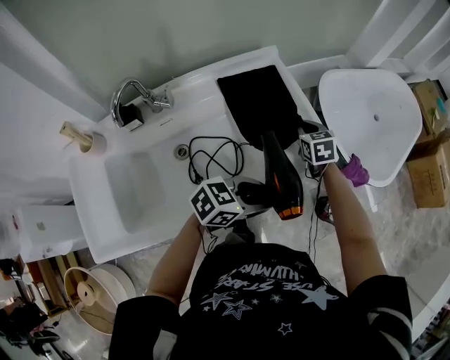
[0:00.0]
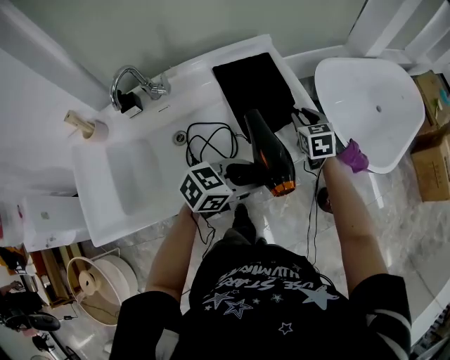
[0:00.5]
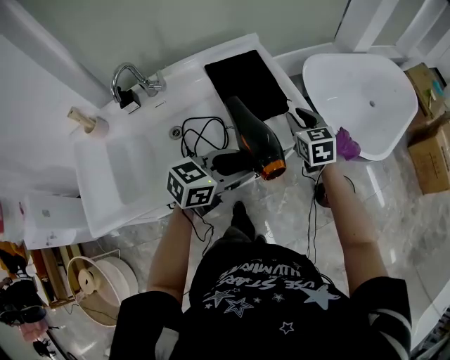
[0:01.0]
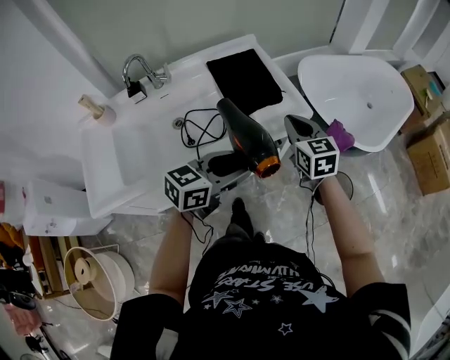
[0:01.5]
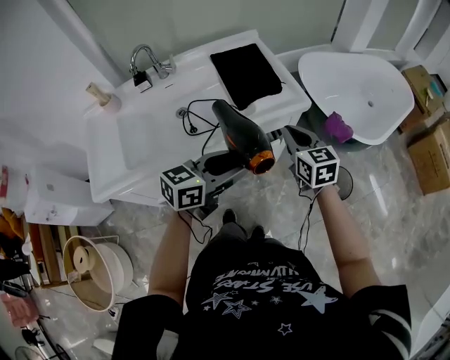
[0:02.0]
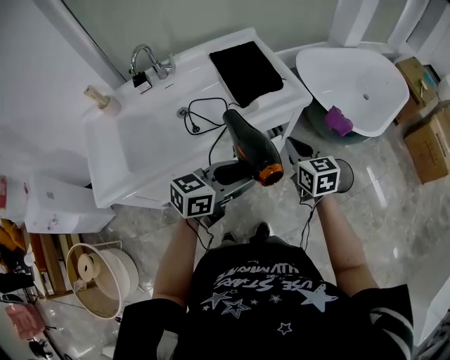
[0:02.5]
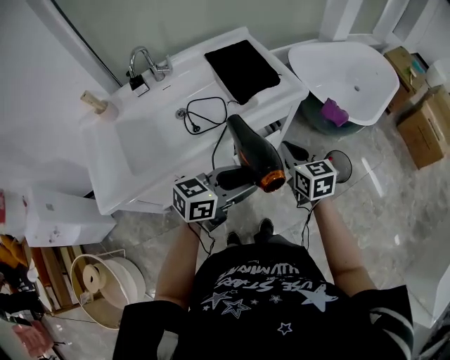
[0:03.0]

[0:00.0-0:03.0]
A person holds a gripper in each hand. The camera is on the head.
0:00.0 to 0:01.5: The right gripper goes some 25 cm backward, upward and to the right, changes its angle by some 20 degrees, and opens, then closes once more. The left gripper goes about 15 cm backward, upward and to the right, and rotates about 20 degrees.
0:01.5 to 0:03.0: Both grippers move backward, some 15 cm.

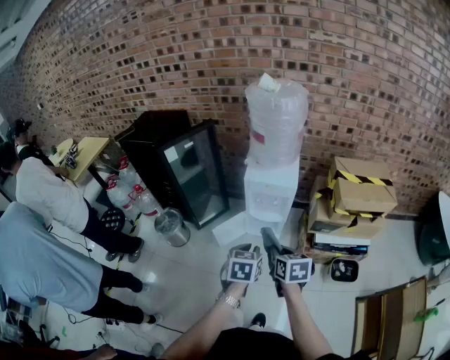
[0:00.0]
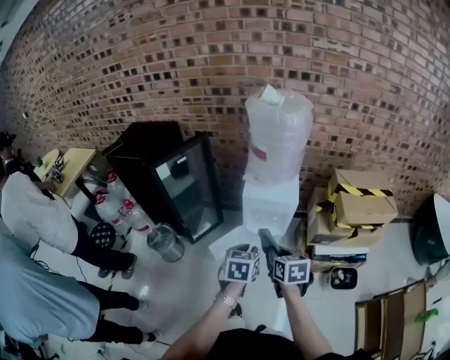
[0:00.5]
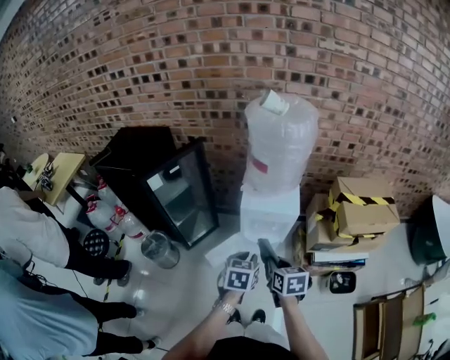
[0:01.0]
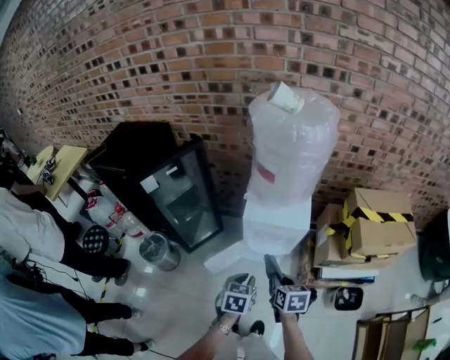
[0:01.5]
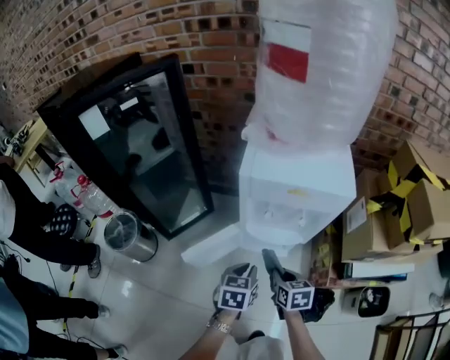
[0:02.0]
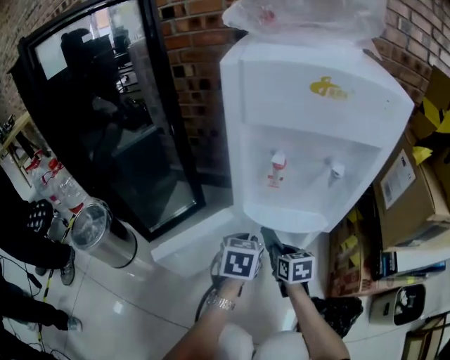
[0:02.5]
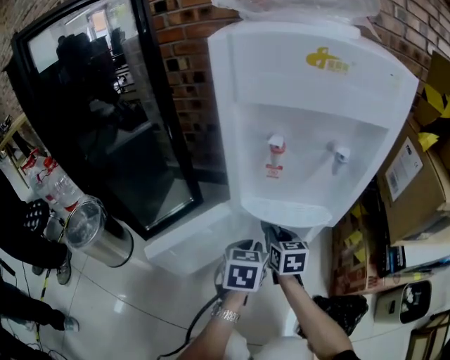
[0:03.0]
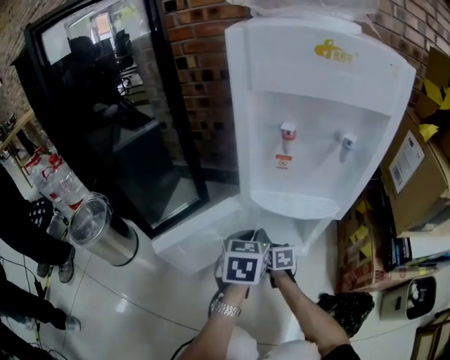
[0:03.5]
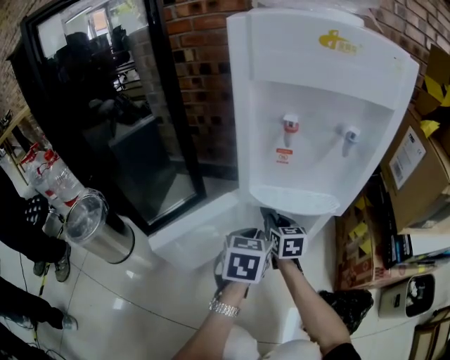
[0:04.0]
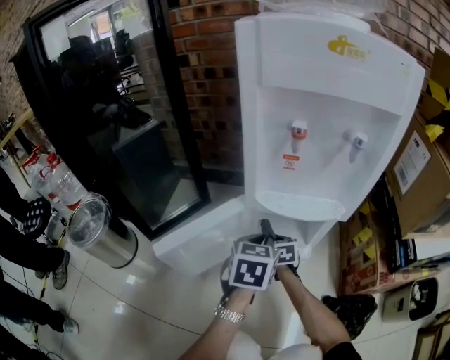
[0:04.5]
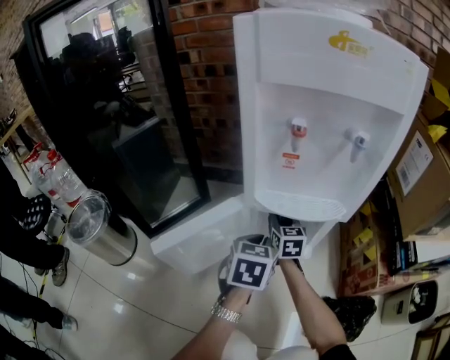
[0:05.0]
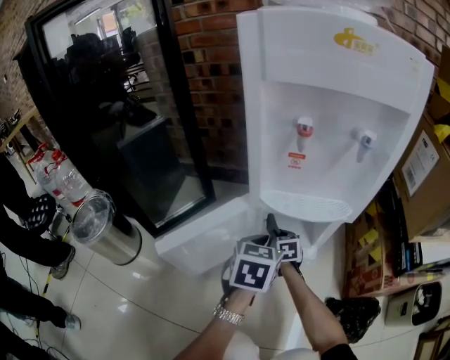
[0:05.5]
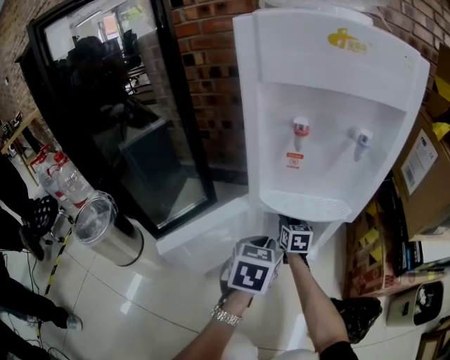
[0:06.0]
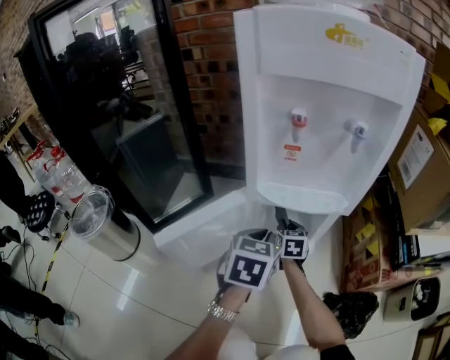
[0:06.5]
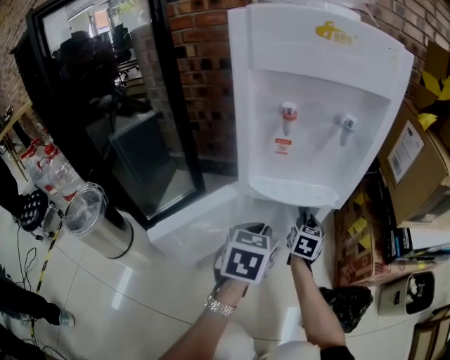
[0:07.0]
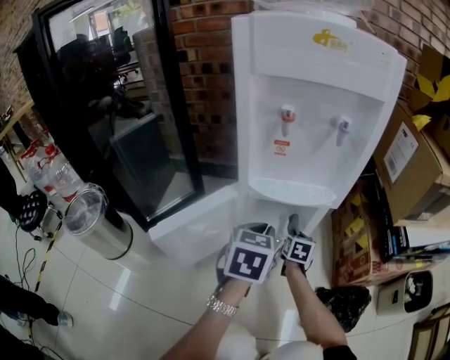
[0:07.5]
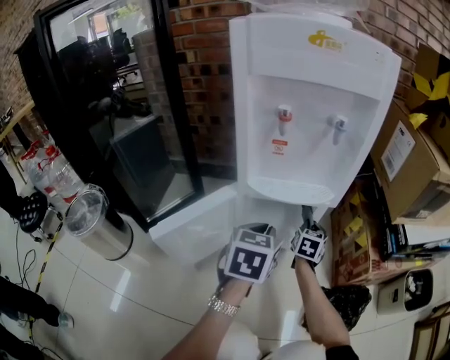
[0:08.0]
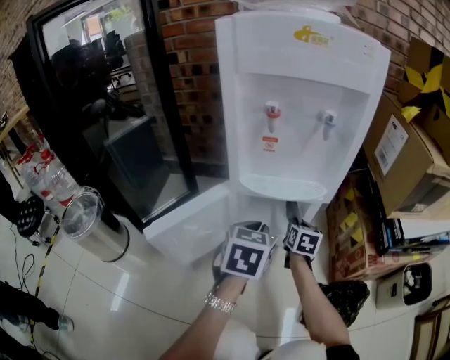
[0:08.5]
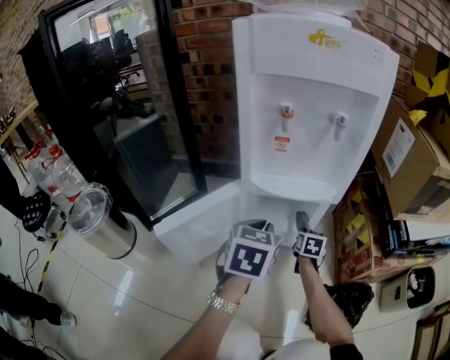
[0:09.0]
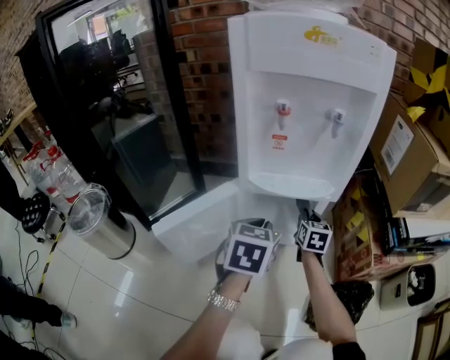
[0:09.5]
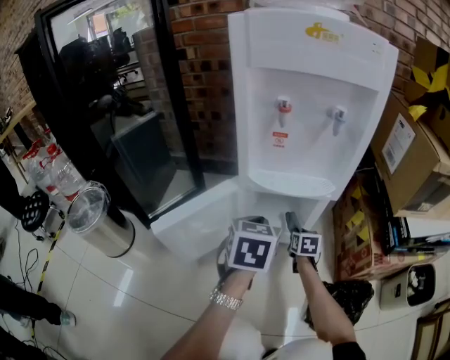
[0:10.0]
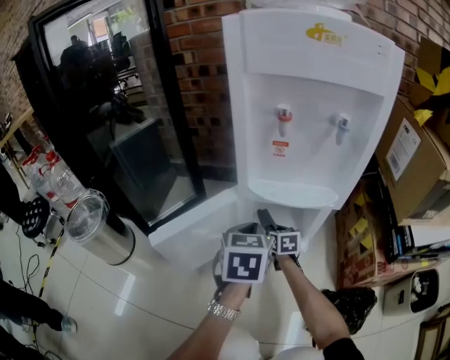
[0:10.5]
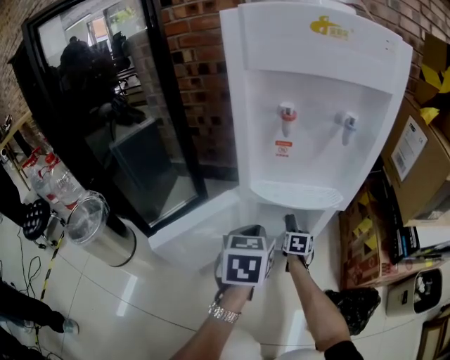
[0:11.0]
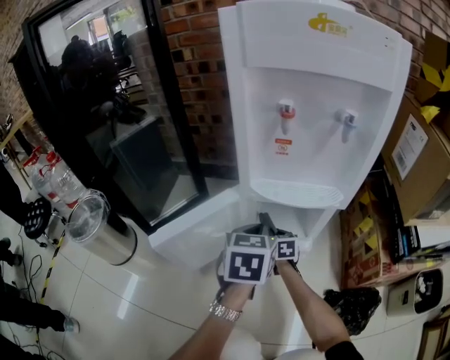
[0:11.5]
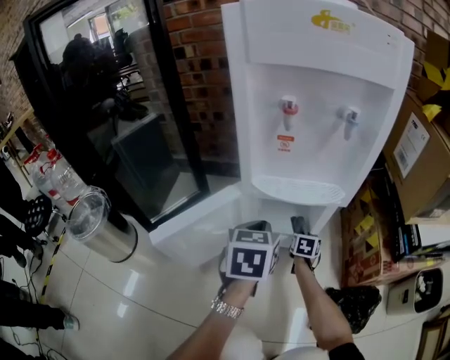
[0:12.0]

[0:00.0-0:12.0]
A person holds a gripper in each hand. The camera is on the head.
0:00.0 to 0:02.0: Both grippers travel together downward and forward, roughly 50 cm.
0:02.0 to 0:04.0: The right gripper heads downward and forward, covering some 30 cm, and rotates about 20 degrees, while the left gripper goes approximately 20 cm downward and forward.
0:04.0 to 0:06.0: The right gripper moves up and down over about 10 cm, changing direction 2 times.
0:06.0 to 0:08.0: The right gripper shifts approximately 15 cm to the right, and rotates some 20 degrees. Meanwhile the left gripper shifts by some 5 cm.
0:08.0 to 0:10.0: The right gripper moves up and down over some 10 cm, changing direction 2 times, and swivels approximately 20 degrees.
0:10.0 to 0:12.0: The right gripper swings left and right, roughly 15 cm each way, with 3 reversals.

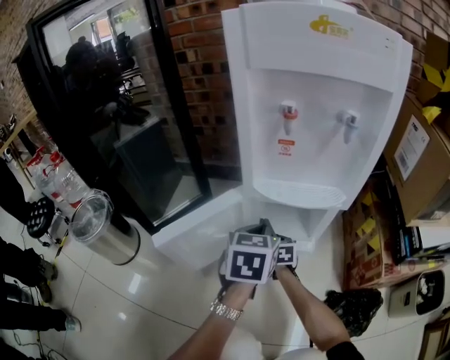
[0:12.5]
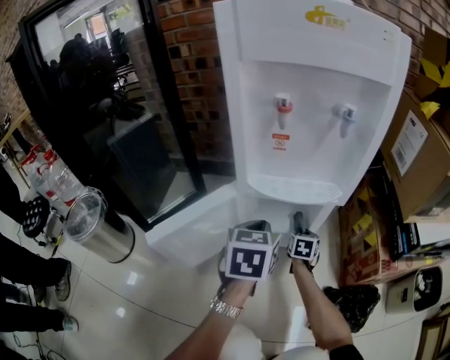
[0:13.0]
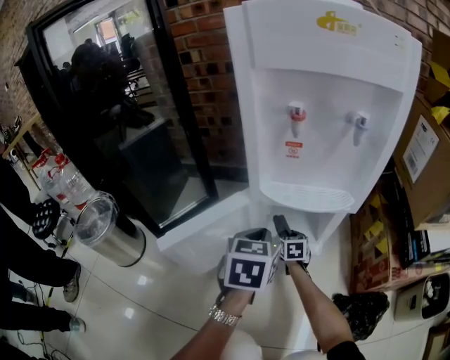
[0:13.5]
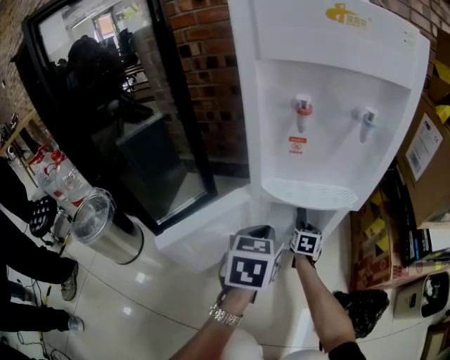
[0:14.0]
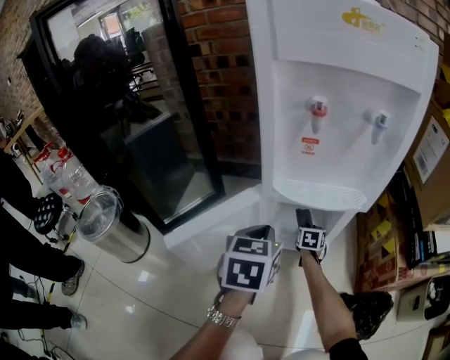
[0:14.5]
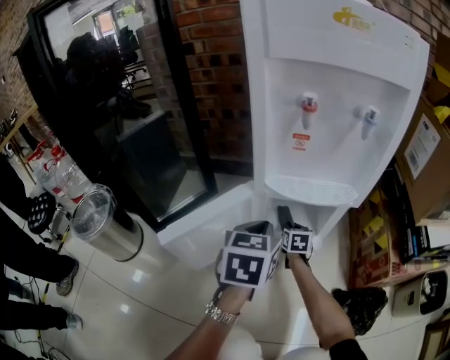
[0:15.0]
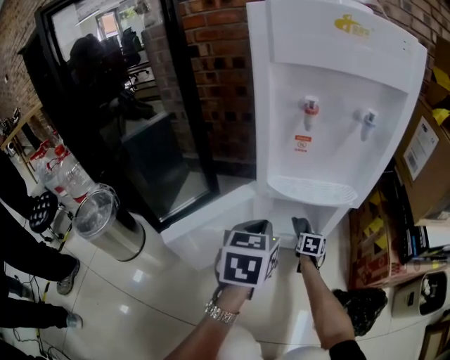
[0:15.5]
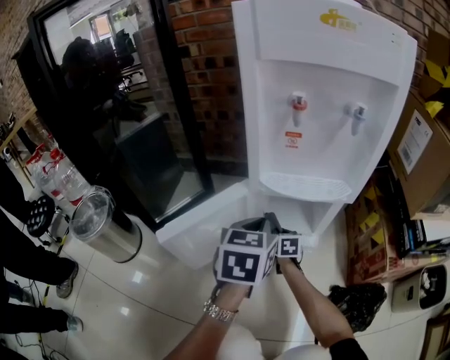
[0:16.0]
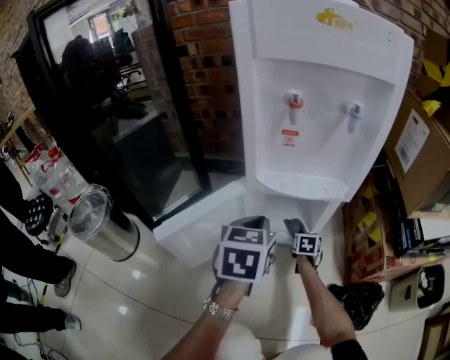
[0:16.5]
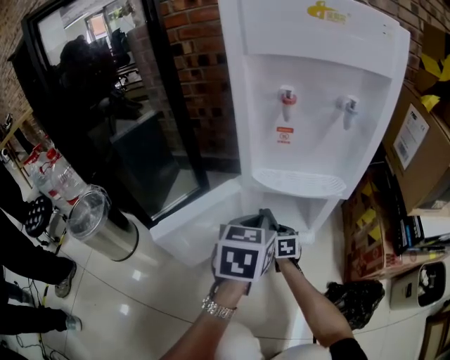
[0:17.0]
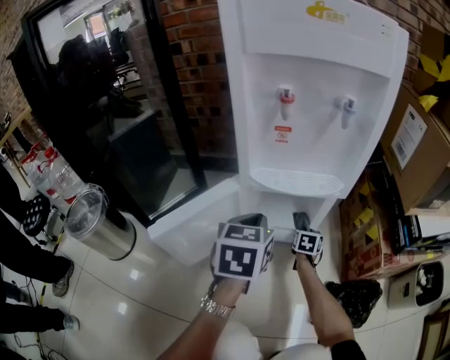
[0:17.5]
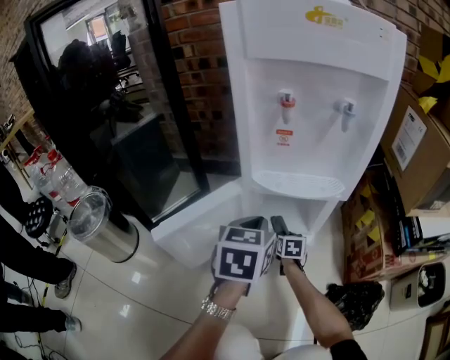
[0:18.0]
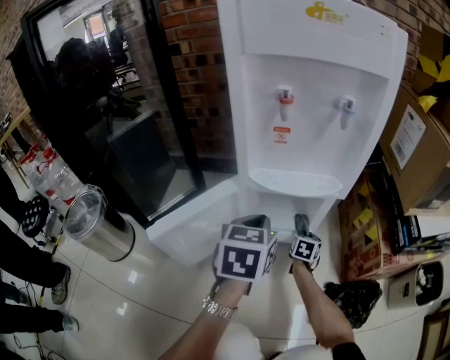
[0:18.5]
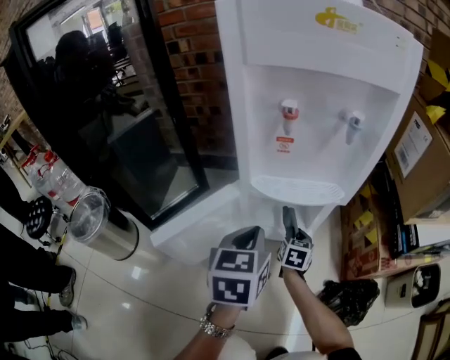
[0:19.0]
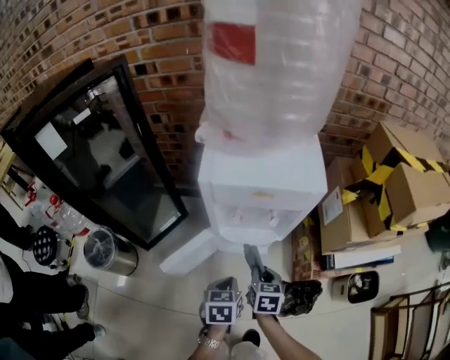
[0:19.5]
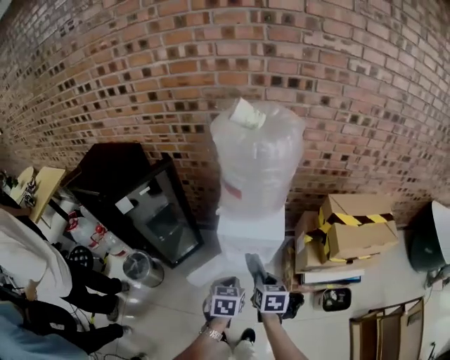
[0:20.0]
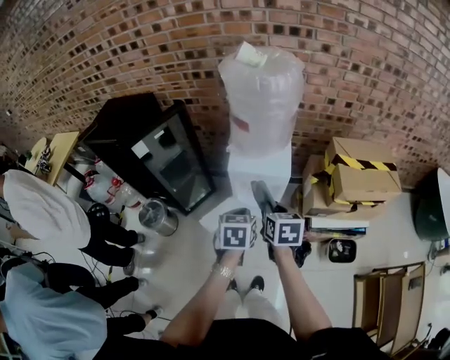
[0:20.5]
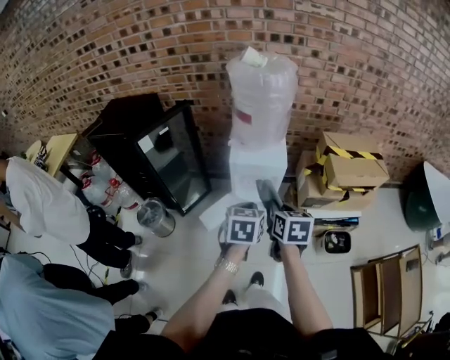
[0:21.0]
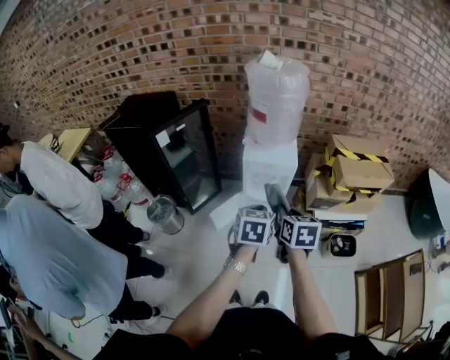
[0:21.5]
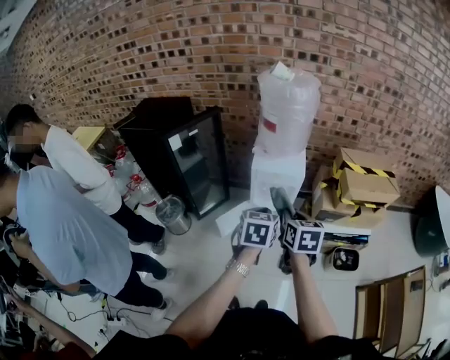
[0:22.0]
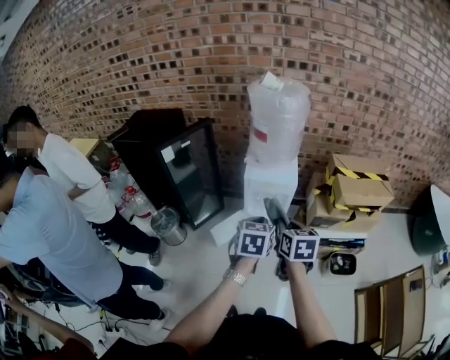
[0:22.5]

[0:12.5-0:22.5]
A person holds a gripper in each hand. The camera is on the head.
0:12.5 to 0:14.5: The right gripper swings left and right, roughly 10 cm each way, with 2 reversals.
0:14.5 to 0:16.5: The right gripper goes left and right, some 15 cm each way, reversing 3 times.
0:16.5 to 0:18.5: The right gripper swings left and right, roughly 15 cm each way, with 3 reversals.
0:18.5 to 0:20.5: The two grippers go some 70 cm upward. The right gripper changes its angle by about 30 degrees.
0:20.5 to 0:22.5: Both grippers move backward and upward, roughly 15 cm.

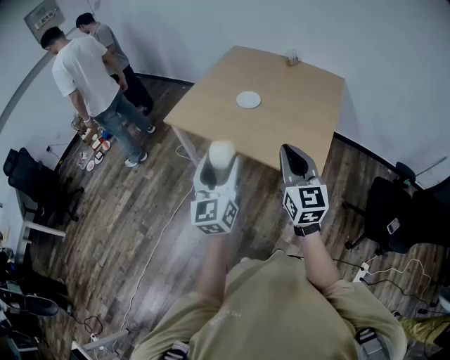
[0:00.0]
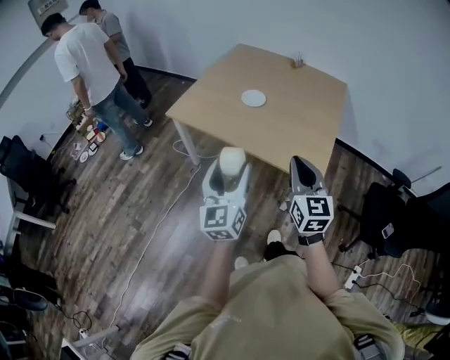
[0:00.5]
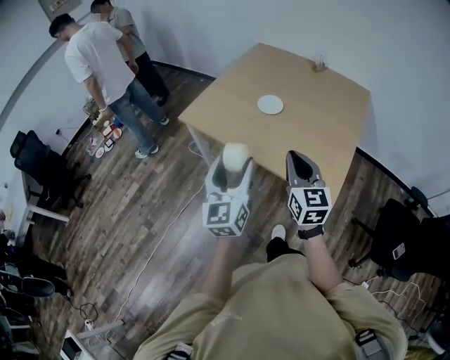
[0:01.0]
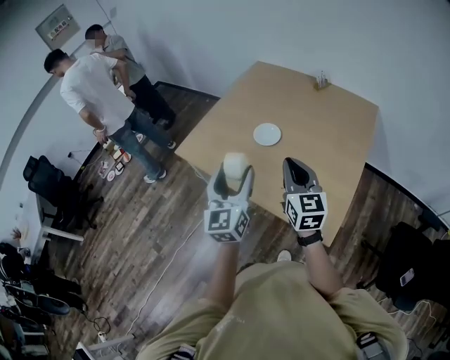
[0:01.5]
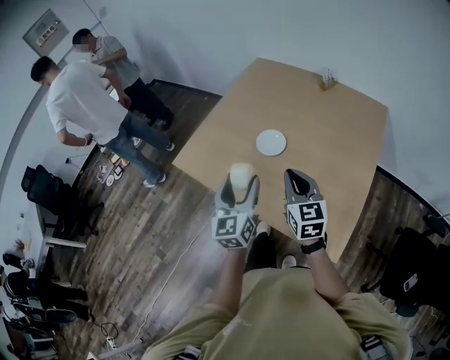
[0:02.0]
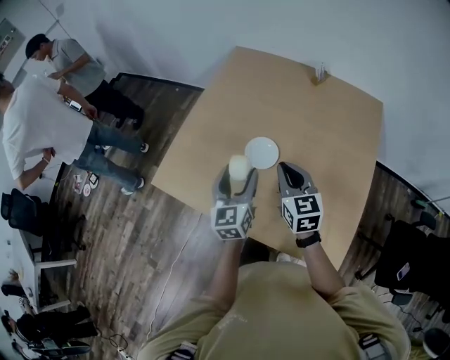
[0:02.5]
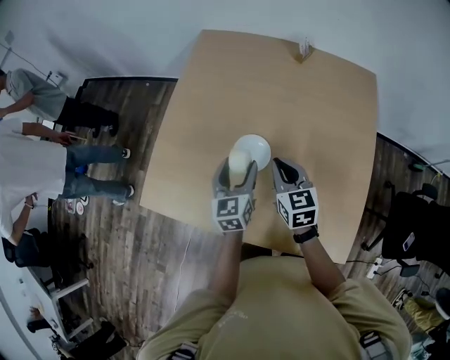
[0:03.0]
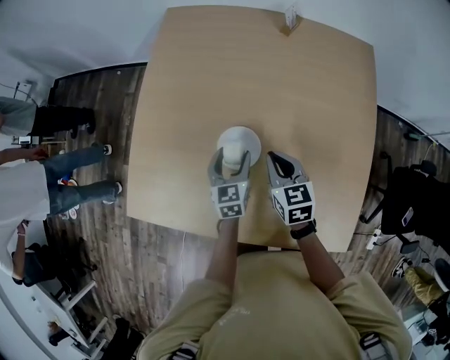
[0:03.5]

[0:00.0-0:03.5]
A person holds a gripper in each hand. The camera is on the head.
0:00.0 to 0:02.0: Both grippers move forward, roughly 35 cm.
0:02.0 to 0:03.5: Both grippers move forward and downward, about 40 cm. The right gripper changes its angle by about 30 degrees, while the left gripper rotates about 40 degrees.
